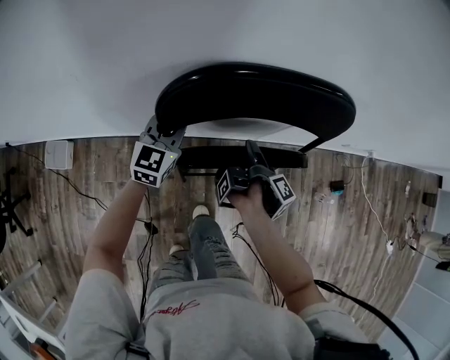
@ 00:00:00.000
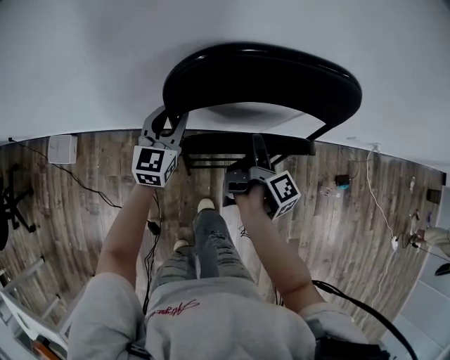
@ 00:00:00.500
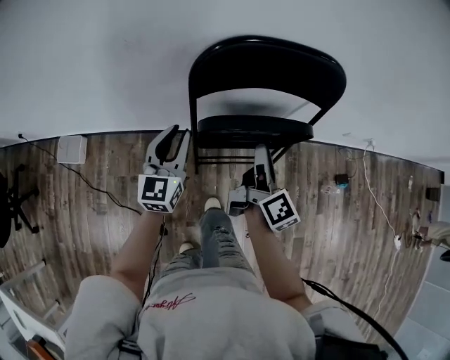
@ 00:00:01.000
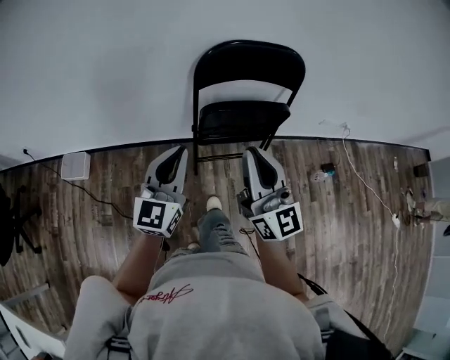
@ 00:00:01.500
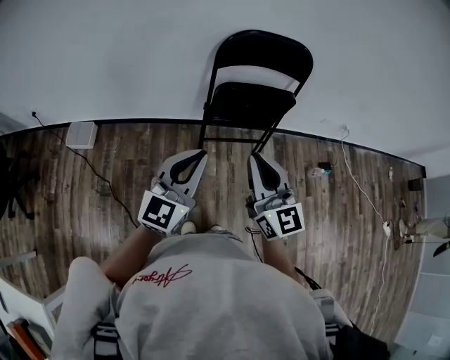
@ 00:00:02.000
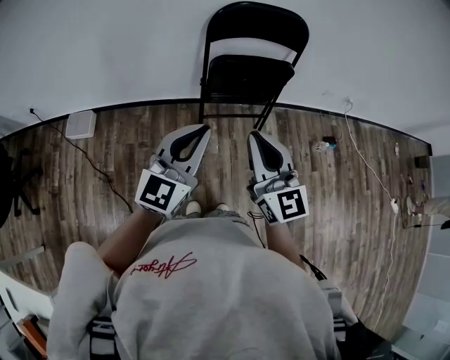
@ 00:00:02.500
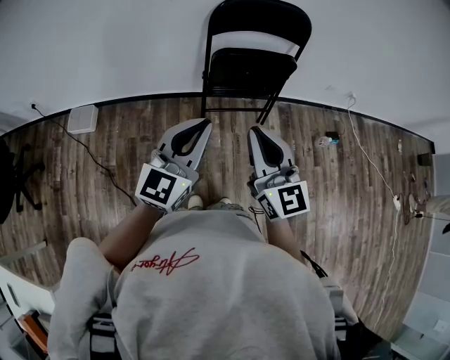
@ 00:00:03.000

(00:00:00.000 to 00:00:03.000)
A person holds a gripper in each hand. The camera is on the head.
00:00:00.000 - 00:00:01.500: The right gripper travels upward and backward by about 40 cm, rotates around the line of its fingers by about 100 degrees, counterclockwise from behind, and closes, while the left gripper shifts approximately 40 cm backward and upward, and turns by approximately 20 degrees.
00:00:01.500 - 00:00:03.000: Both grippers move backward, some 15 cm.

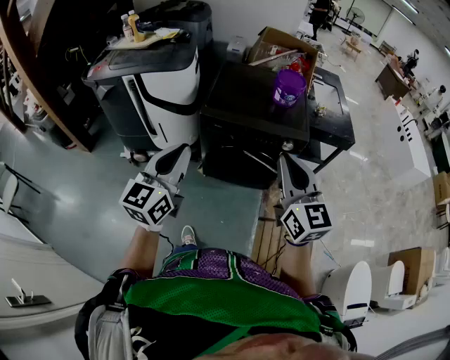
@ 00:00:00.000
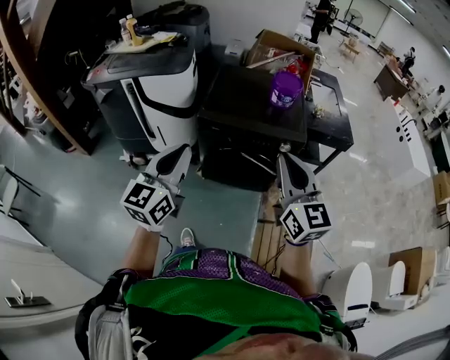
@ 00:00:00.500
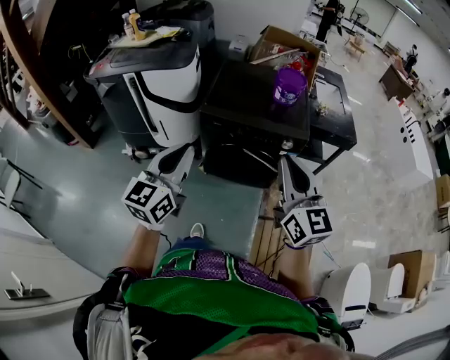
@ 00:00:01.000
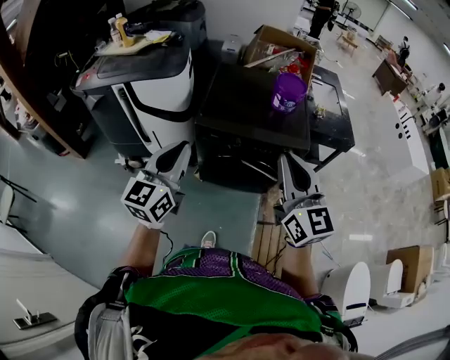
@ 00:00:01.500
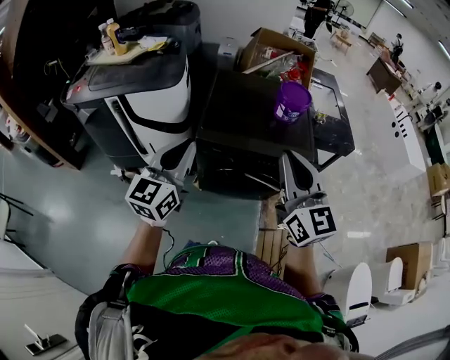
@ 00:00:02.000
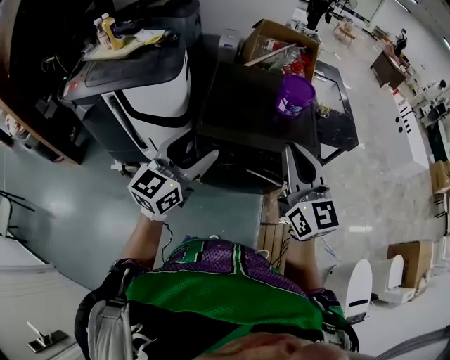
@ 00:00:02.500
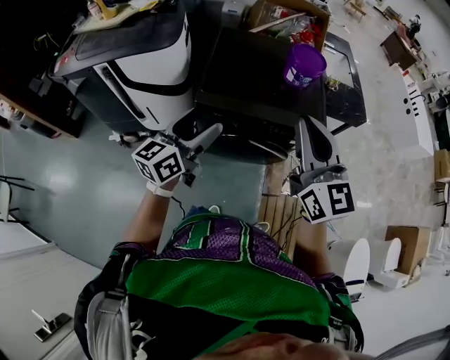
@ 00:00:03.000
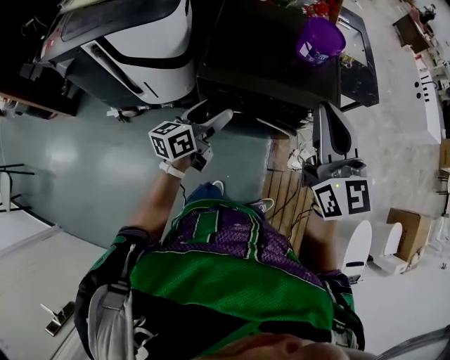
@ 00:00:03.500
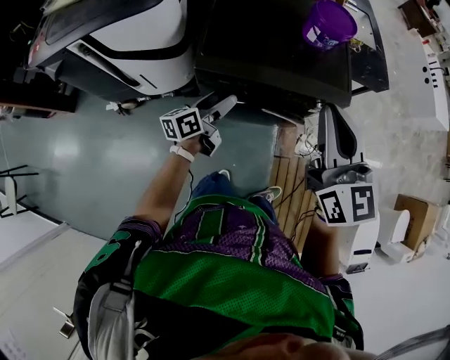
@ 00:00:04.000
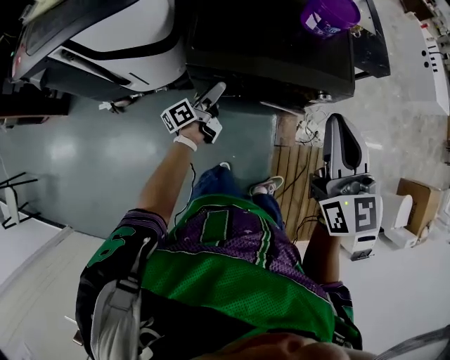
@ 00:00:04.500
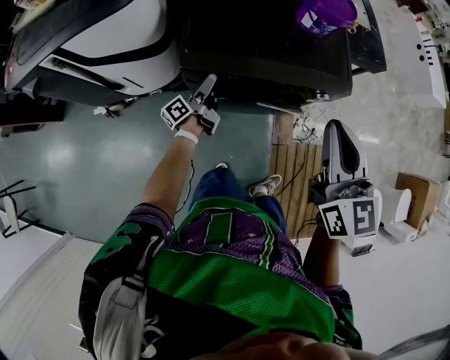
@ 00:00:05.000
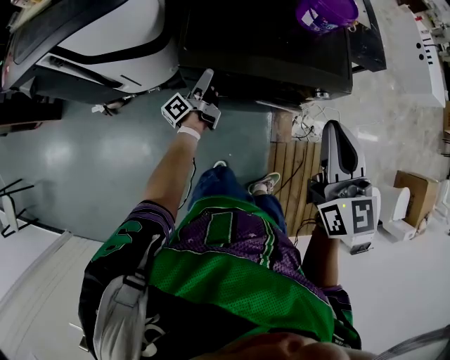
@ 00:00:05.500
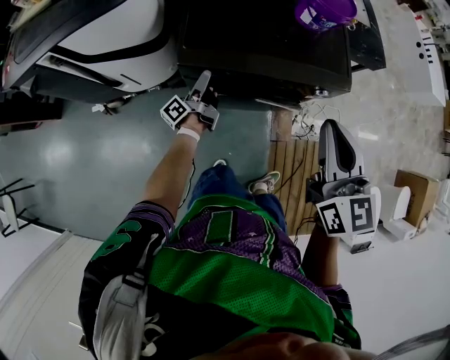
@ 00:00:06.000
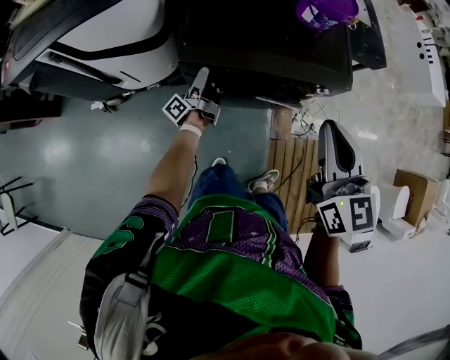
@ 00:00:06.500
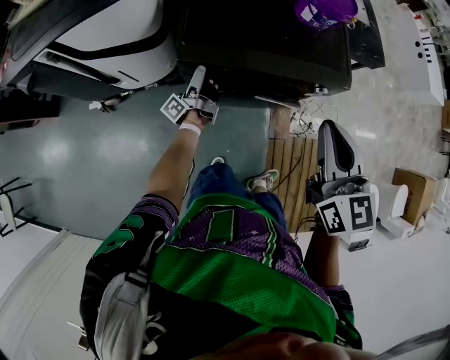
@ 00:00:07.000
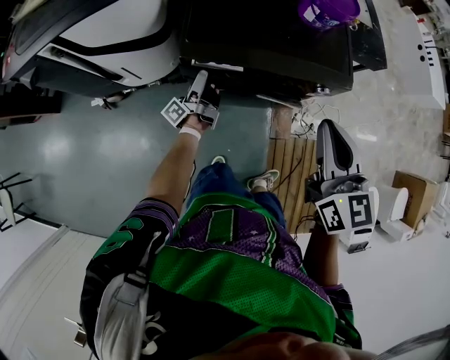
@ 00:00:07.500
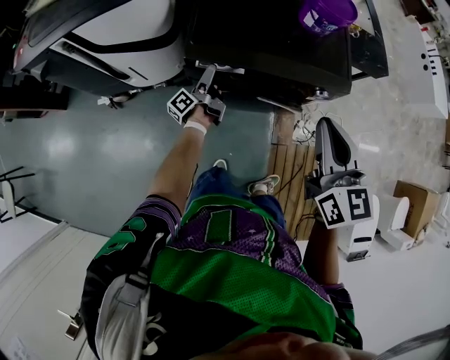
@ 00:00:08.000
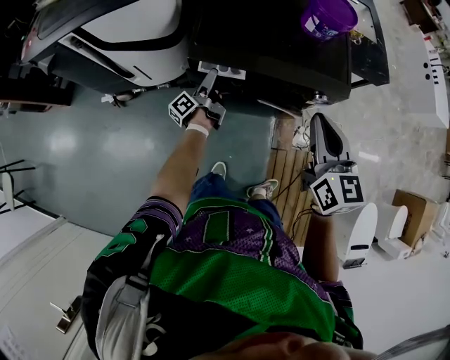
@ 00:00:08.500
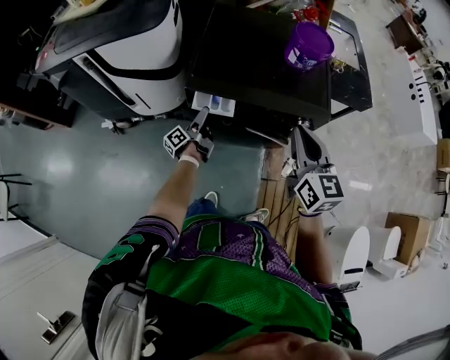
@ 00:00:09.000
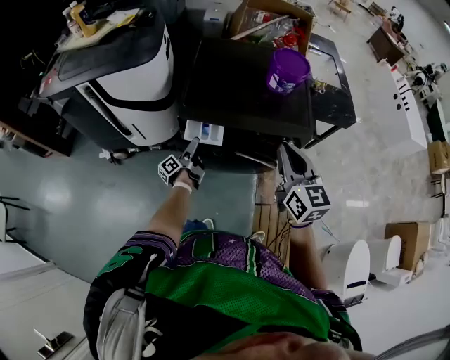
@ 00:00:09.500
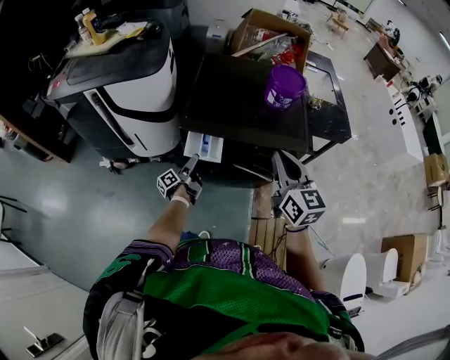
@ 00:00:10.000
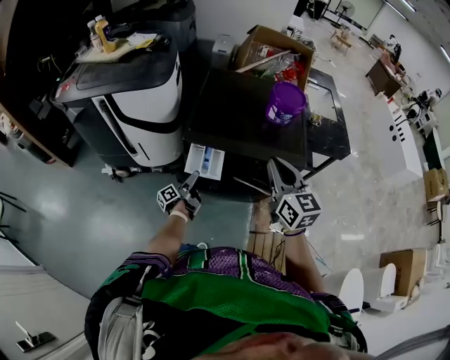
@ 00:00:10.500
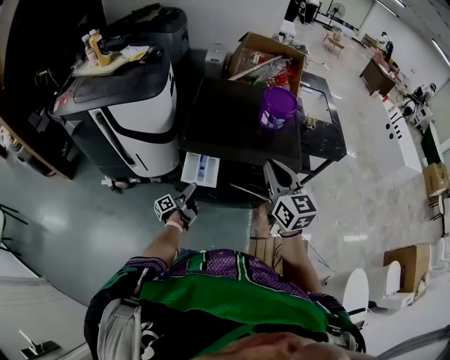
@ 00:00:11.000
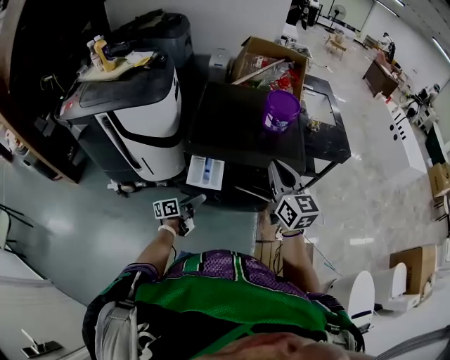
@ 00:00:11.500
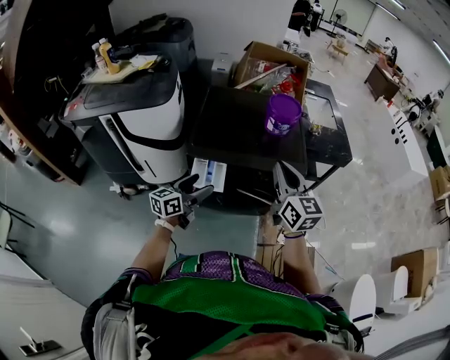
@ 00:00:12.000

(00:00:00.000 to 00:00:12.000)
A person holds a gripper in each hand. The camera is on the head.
00:00:00.000 - 00:00:02.000: The right gripper moves forward and to the left, about 15 cm, while the left gripper goes approximately 20 cm forward.
00:00:02.000 - 00:00:04.000: The right gripper moves forward and downward, approximately 15 cm. Meanwhile the left gripper shifts roughly 35 cm downward and forward, rolls counterclockwise, seen from behind, by roughly 50 degrees, and opens its fingers.
00:00:04.000 - 00:00:06.000: The left gripper heads downward and forward, covering about 15 cm, and swivels about 40 degrees. The right gripper moves downward, about 5 cm.
00:00:08.000 - 00:00:10.000: The left gripper goes approximately 10 cm backward.
00:00:10.000 - 00:00:12.000: The left gripper is displaced upward by roughly 20 cm, and twists about 60 degrees clockwise, seen from behind.

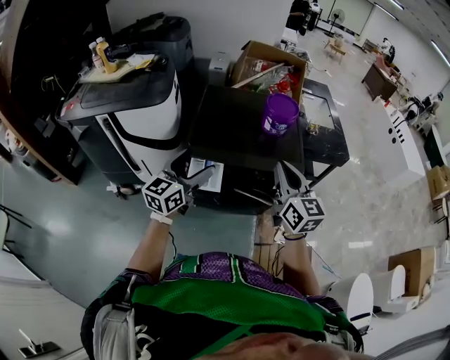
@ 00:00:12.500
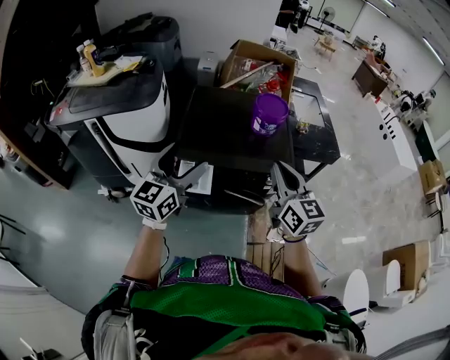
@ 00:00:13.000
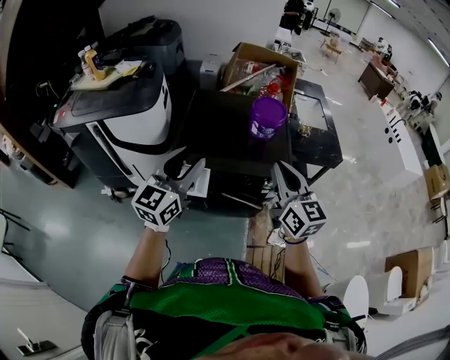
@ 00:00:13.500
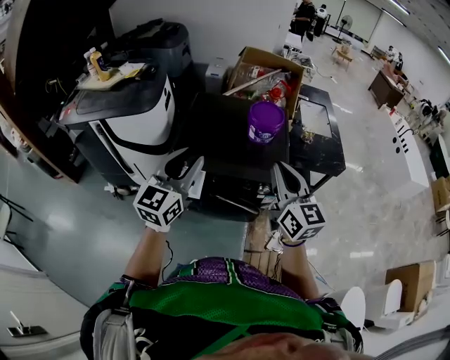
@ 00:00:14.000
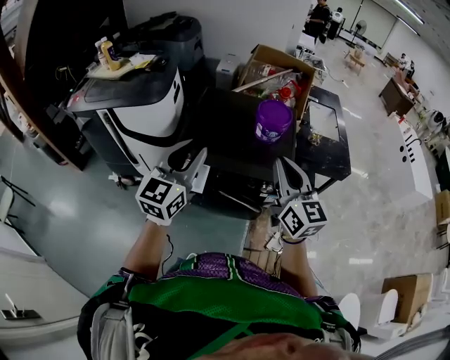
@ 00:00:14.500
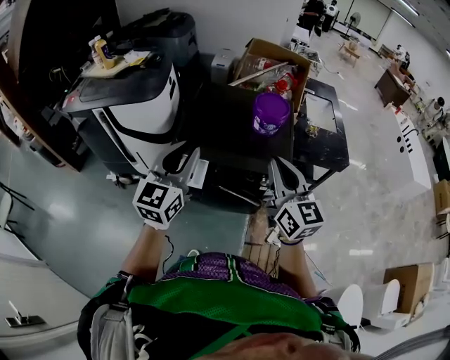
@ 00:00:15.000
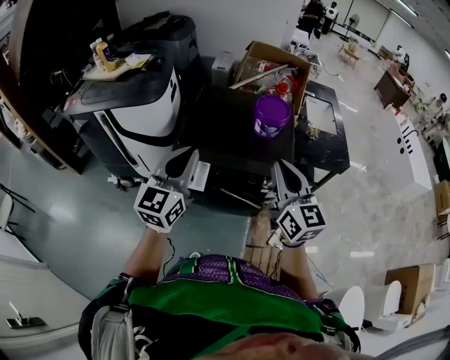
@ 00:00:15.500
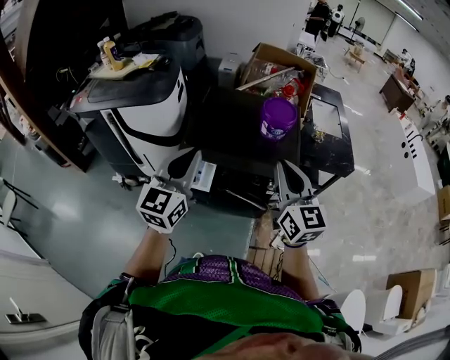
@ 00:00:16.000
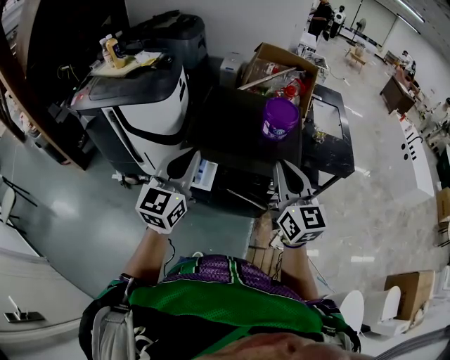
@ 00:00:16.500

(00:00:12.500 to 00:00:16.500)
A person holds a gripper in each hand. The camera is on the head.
00:00:12.500 - 00:00:14.500: The right gripper travels to the right and upward by some 10 cm, while the left gripper is displaced upward and to the right by roughly 15 cm, and closes.
00:00:14.500 - 00:00:16.500: There are only small adjustments of the grippers.

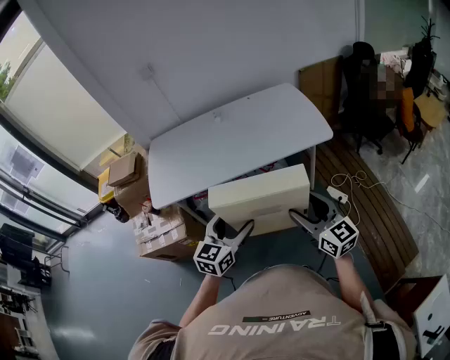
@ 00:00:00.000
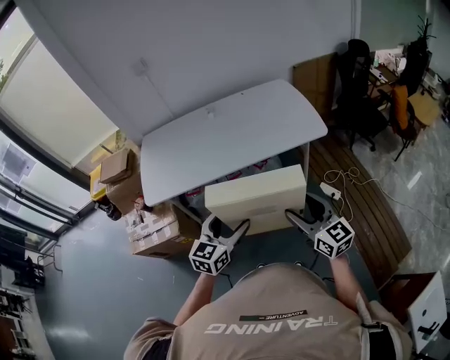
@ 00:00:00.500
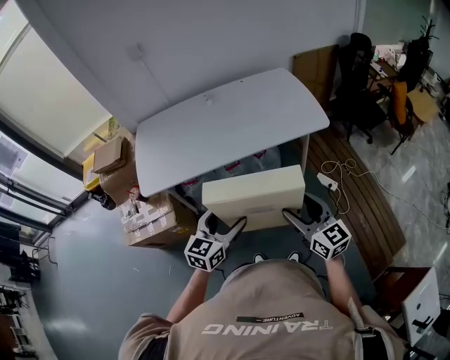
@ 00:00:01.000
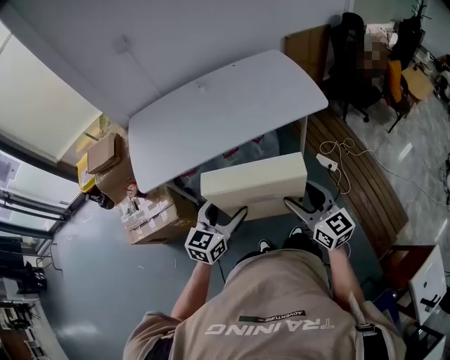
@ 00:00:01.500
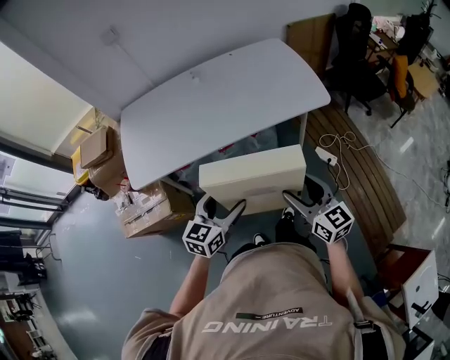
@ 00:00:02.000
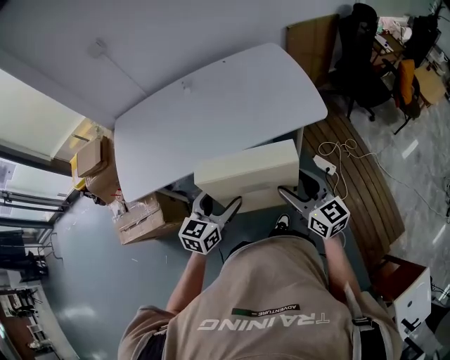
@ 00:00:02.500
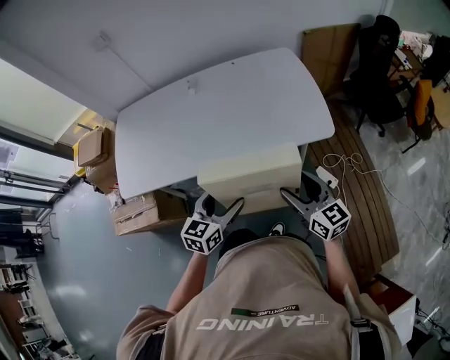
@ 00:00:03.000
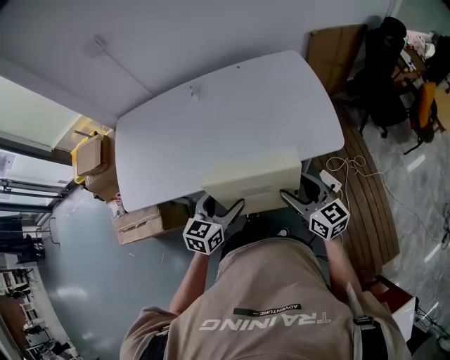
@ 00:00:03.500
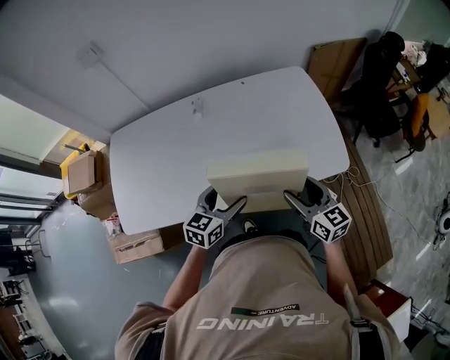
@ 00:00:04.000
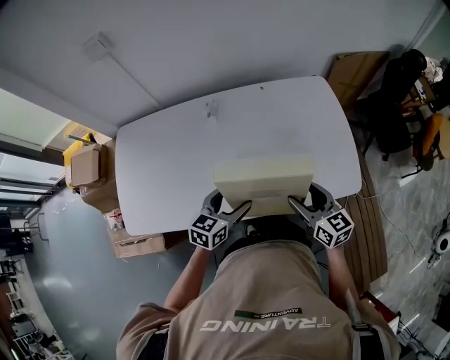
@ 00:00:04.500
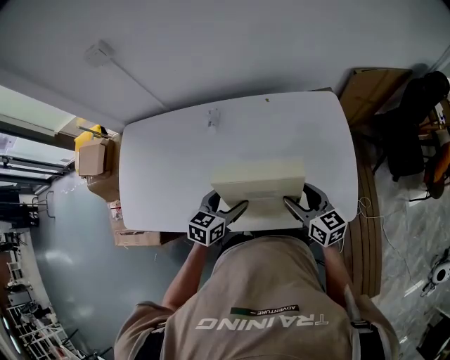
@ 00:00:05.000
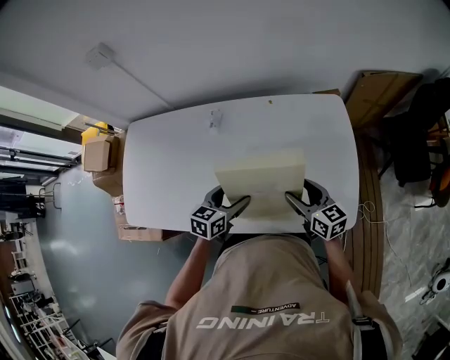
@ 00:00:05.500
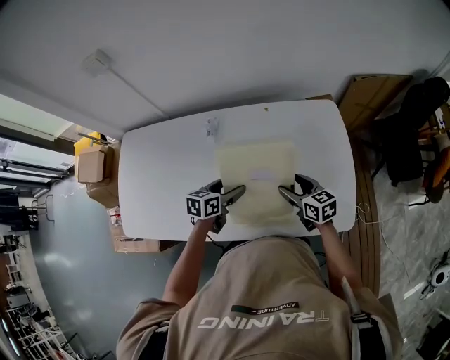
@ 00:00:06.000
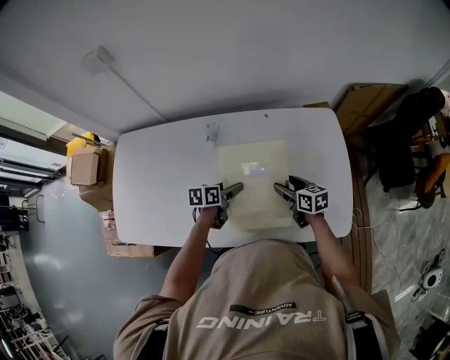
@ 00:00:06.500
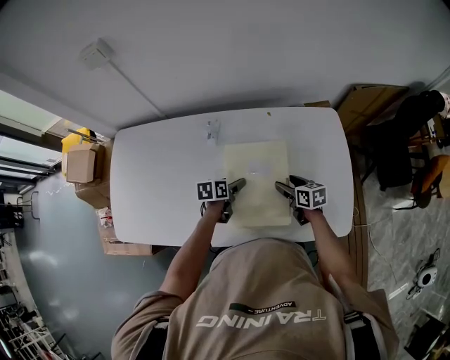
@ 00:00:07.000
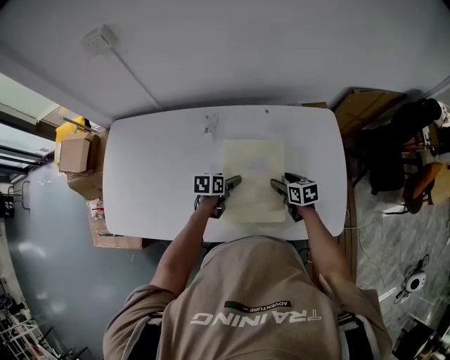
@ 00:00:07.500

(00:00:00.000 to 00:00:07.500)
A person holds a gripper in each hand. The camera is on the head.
00:00:00.000 - 00:00:02.000: The left gripper heads downward and forward, covering approximately 10 cm; the right gripper moves downward, roughly 5 cm.
00:00:02.000 - 00:00:04.000: Both grippers travel together forward, approximately 30 cm.
00:00:04.000 - 00:00:05.500: Both grippers move forward, some 15 cm.
00:00:05.500 - 00:00:07.500: The two grippers go some 15 cm downward and forward. The right gripper turns by some 30 degrees. The left gripper turns by about 30 degrees.
